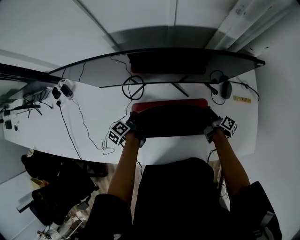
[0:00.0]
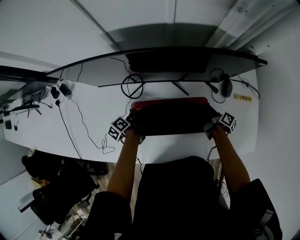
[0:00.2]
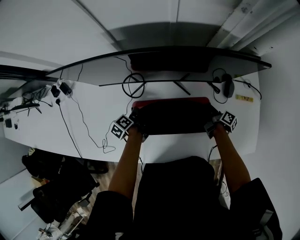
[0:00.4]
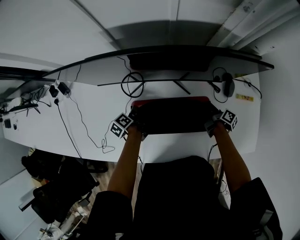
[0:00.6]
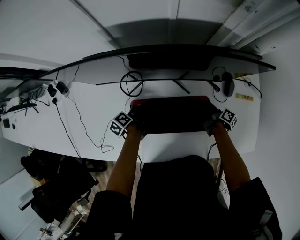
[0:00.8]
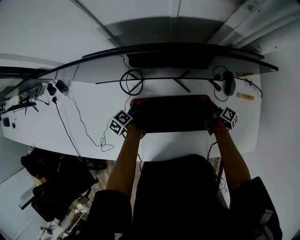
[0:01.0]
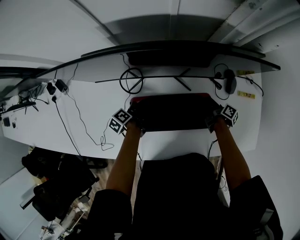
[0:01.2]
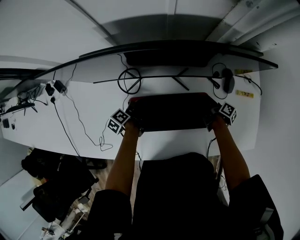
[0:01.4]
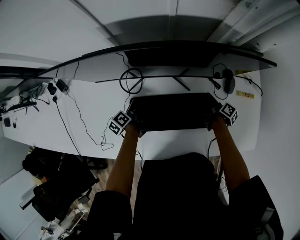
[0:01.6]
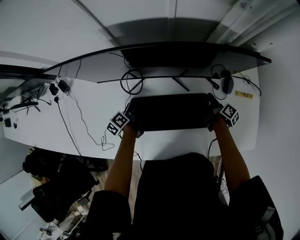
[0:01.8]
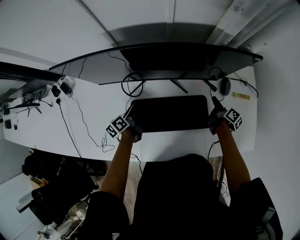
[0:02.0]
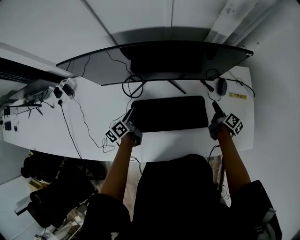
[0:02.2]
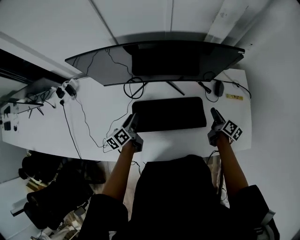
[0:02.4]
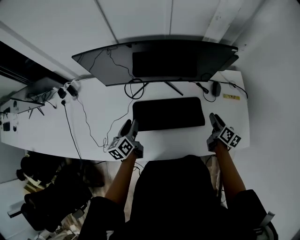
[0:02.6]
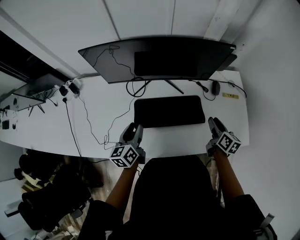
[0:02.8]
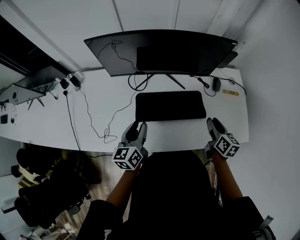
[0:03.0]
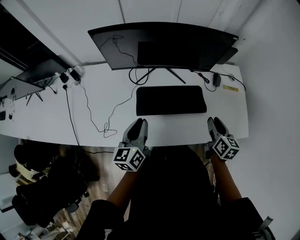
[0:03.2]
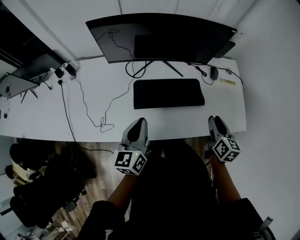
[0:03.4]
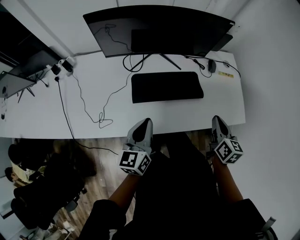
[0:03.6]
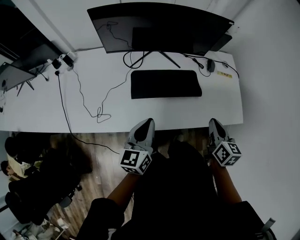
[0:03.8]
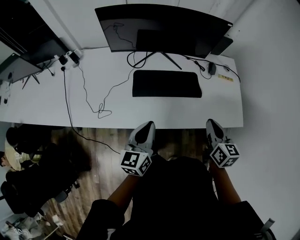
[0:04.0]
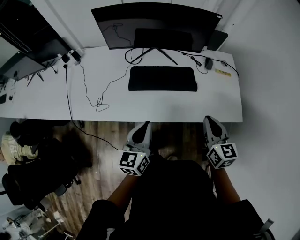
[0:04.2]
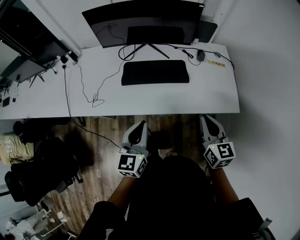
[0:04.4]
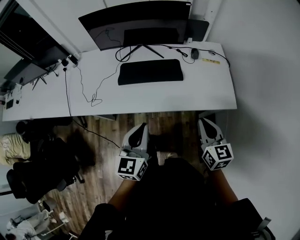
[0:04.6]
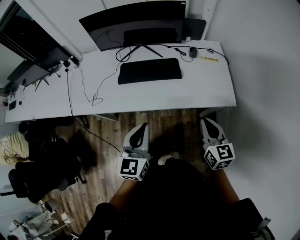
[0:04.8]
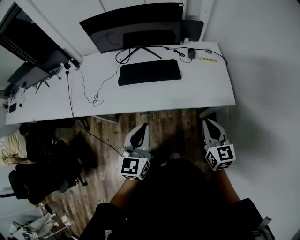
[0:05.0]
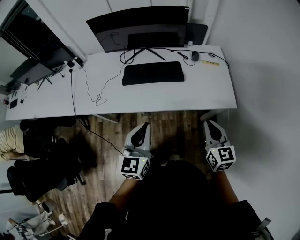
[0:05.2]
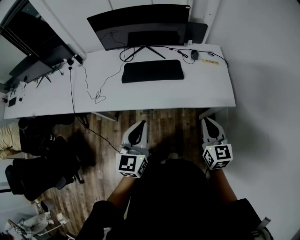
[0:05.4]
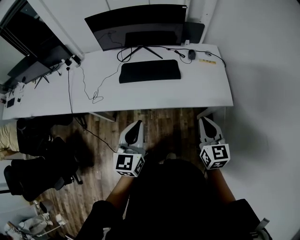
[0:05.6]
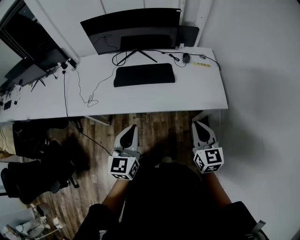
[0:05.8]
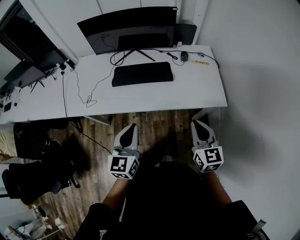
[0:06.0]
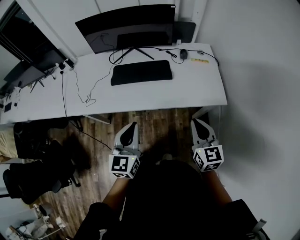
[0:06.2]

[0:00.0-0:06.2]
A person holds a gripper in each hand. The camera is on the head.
0:00.0 to 0:01.6: The grippers stay close to where they were, moving slightly.
0:01.6 to 0:03.2: The left gripper goes some 35 cm upward and backward, and rotates around the line of its fingers by roughly 40 degrees, clockwise from behind; the right gripper moves backward and upward, roughly 35 cm, and rotates around the line of its fingers by approximately 50 degrees, counterclockwise from behind.
0:03.2 to 0:04.6: The left gripper is displaced backward and to the right by about 30 cm, and rotates some 20 degrees, while the right gripper shifts roughly 25 cm backward, rotates some 20 degrees, and closes up.
0:04.6 to 0:06.2: The right gripper shifts about 5 cm backward.

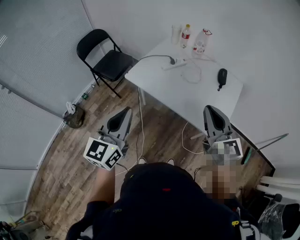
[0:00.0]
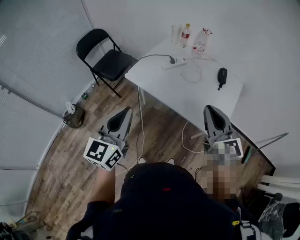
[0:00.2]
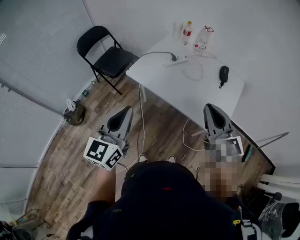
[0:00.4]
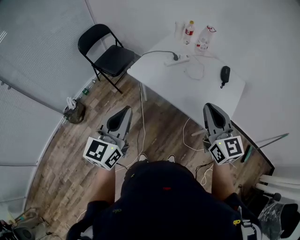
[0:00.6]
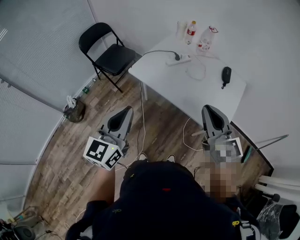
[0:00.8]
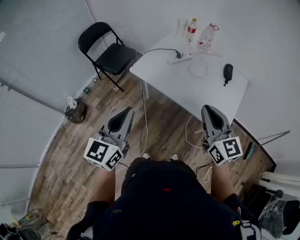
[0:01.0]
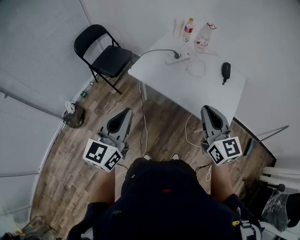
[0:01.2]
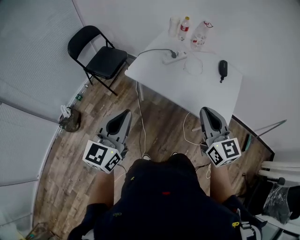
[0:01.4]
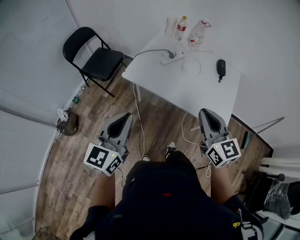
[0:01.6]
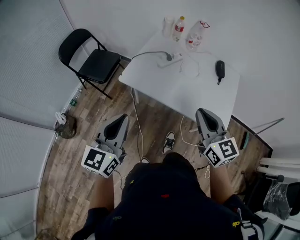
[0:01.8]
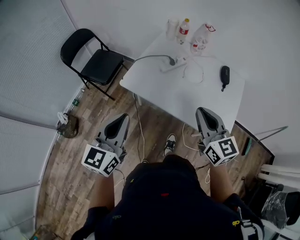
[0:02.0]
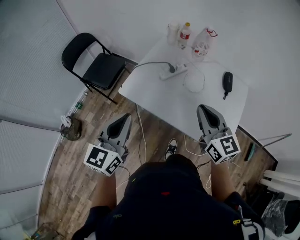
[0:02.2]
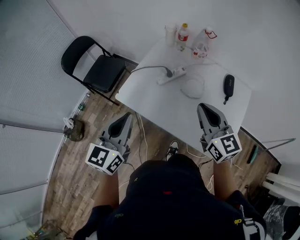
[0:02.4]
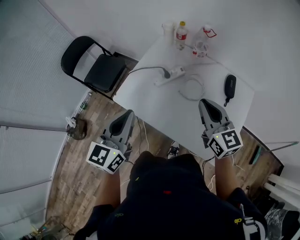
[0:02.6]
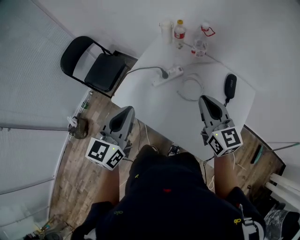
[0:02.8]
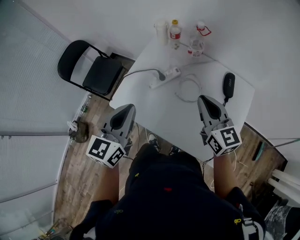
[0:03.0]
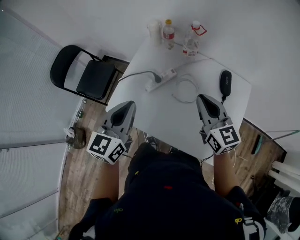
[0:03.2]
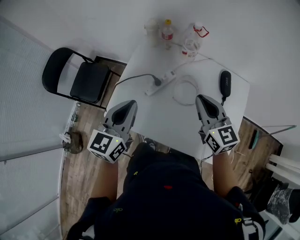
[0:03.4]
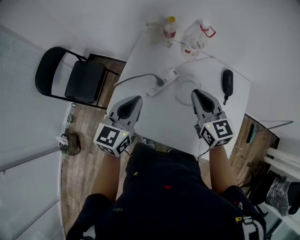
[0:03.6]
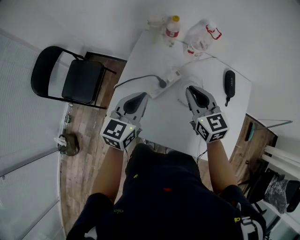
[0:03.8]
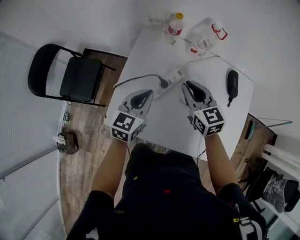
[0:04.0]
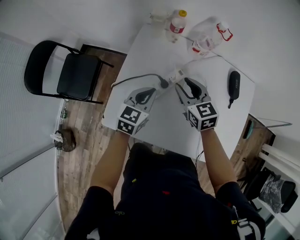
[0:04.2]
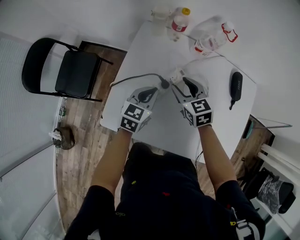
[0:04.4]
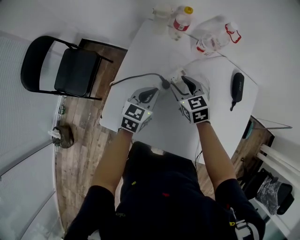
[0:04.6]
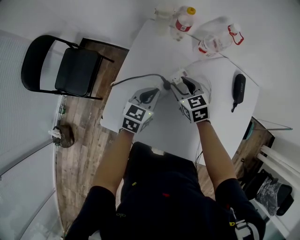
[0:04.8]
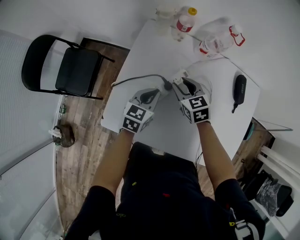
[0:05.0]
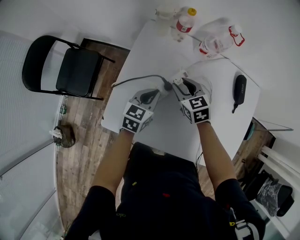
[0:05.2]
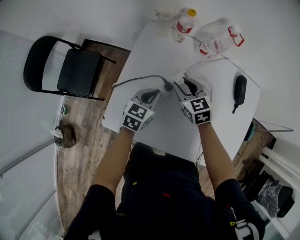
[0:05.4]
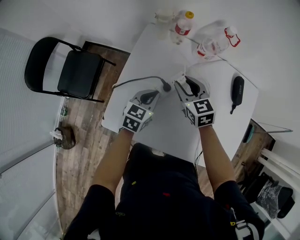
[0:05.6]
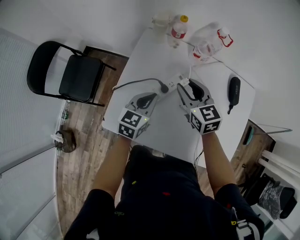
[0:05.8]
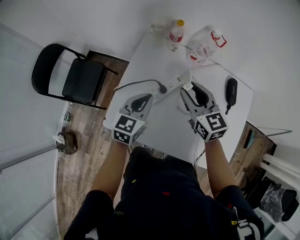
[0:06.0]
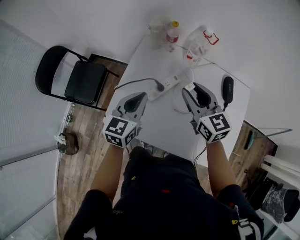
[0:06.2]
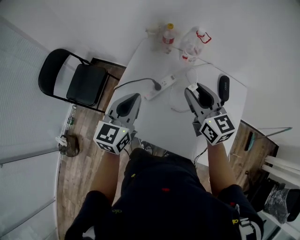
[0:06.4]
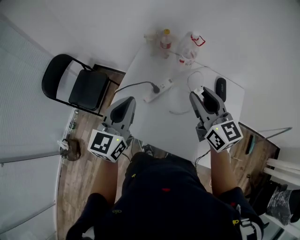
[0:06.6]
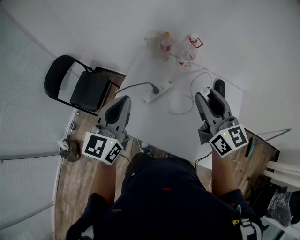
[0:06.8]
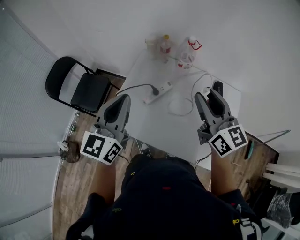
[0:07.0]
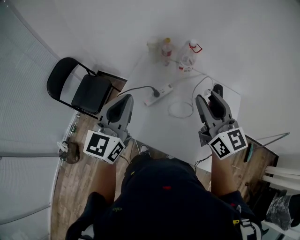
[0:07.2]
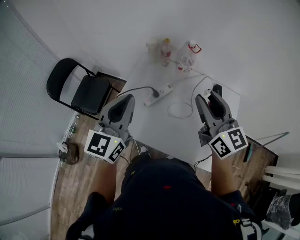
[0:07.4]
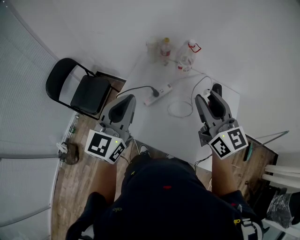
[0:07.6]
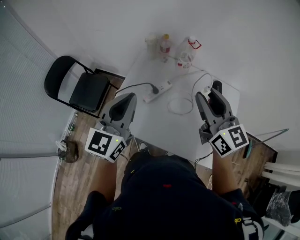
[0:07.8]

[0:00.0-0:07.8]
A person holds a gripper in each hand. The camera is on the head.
0:00.0 to 0:01.6: Both grippers travel together to the left, some 10 cm.
0:01.6 to 0:03.2: The grippers both shift forward and to the right by some 35 cm.
0:03.2 to 0:04.6: The right gripper is displaced downward, forward and to the left by roughly 30 cm, turns by about 30 degrees, and opens its fingers; the left gripper travels downward and forward by roughly 30 cm, and rotates approximately 20 degrees.
0:04.6 to 0:06.2: Both grippers travel together upward, roughly 20 cm. The right gripper rotates roughly 20 degrees.
0:06.2 to 0:07.8: Both grippers travel together upward and backward, some 20 cm. The left gripper changes its angle by approximately 20 degrees.

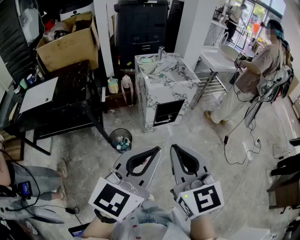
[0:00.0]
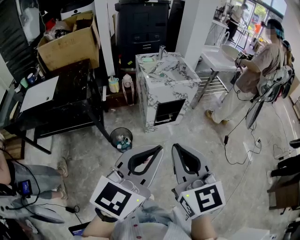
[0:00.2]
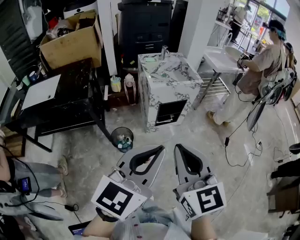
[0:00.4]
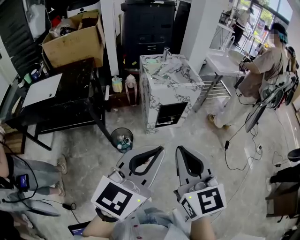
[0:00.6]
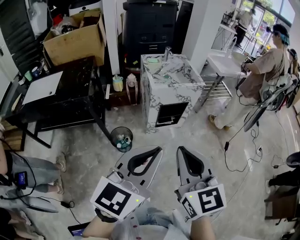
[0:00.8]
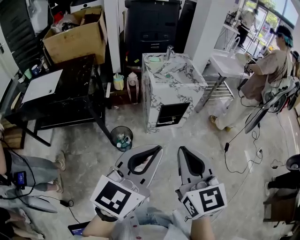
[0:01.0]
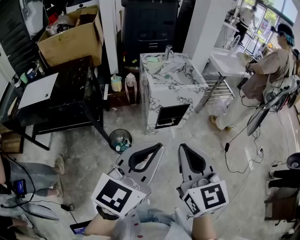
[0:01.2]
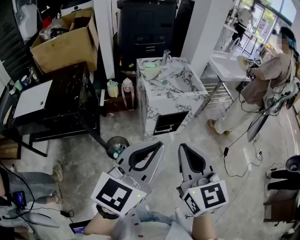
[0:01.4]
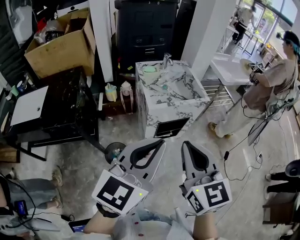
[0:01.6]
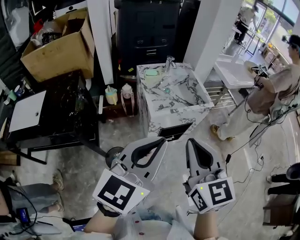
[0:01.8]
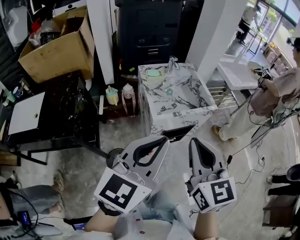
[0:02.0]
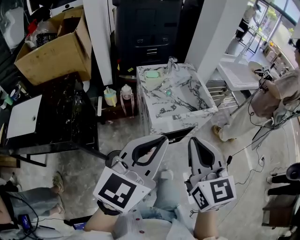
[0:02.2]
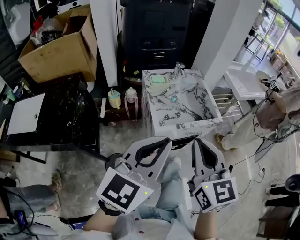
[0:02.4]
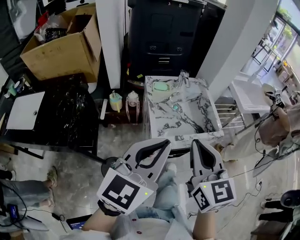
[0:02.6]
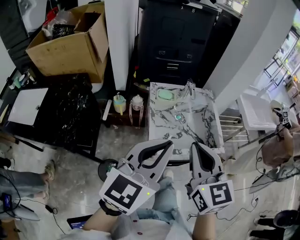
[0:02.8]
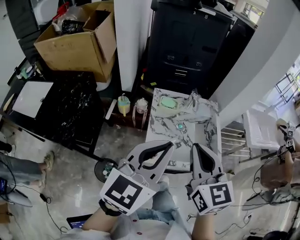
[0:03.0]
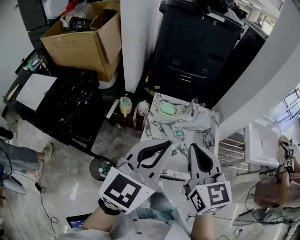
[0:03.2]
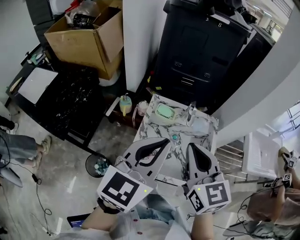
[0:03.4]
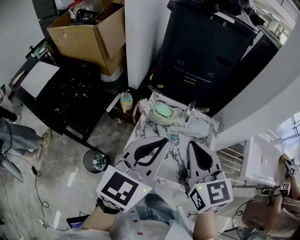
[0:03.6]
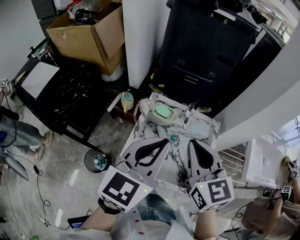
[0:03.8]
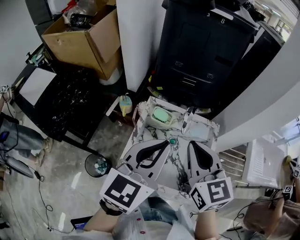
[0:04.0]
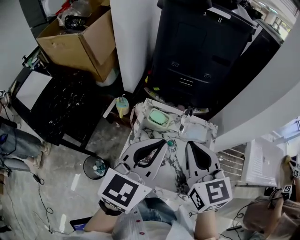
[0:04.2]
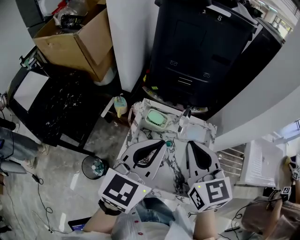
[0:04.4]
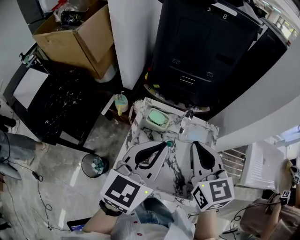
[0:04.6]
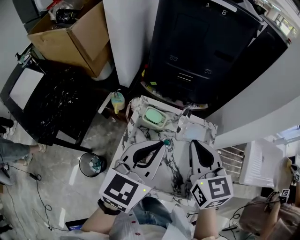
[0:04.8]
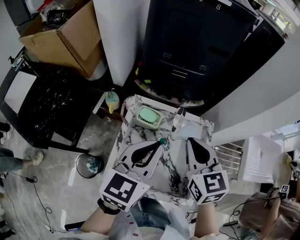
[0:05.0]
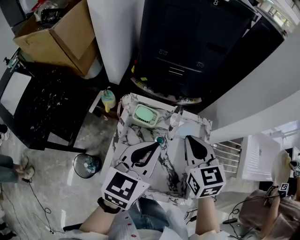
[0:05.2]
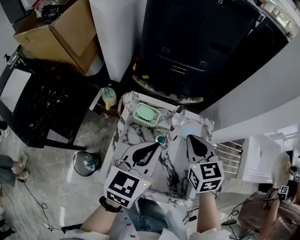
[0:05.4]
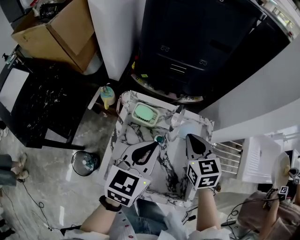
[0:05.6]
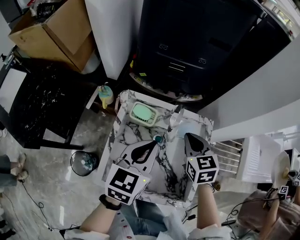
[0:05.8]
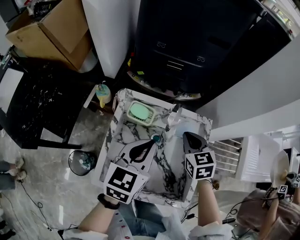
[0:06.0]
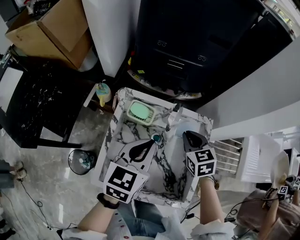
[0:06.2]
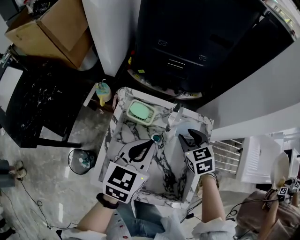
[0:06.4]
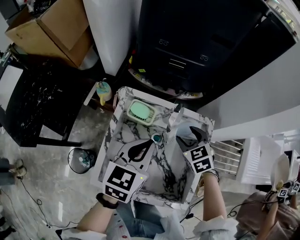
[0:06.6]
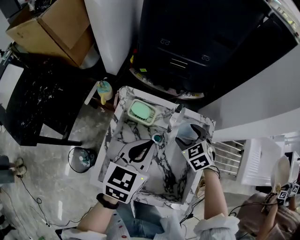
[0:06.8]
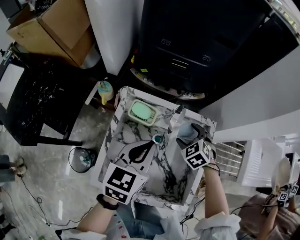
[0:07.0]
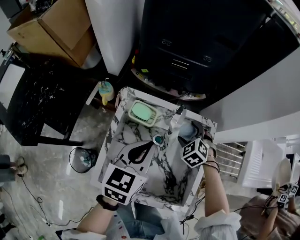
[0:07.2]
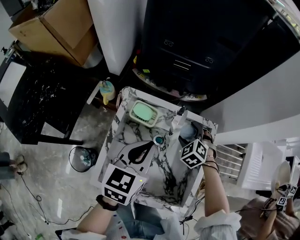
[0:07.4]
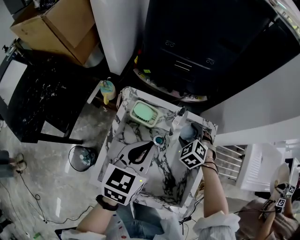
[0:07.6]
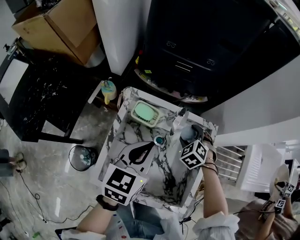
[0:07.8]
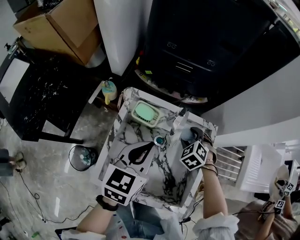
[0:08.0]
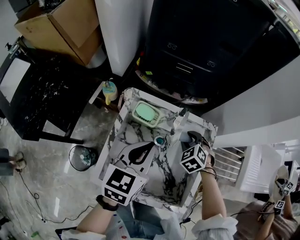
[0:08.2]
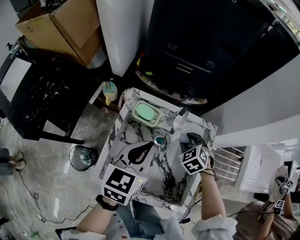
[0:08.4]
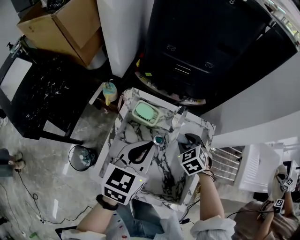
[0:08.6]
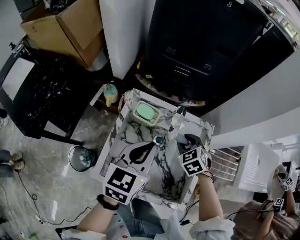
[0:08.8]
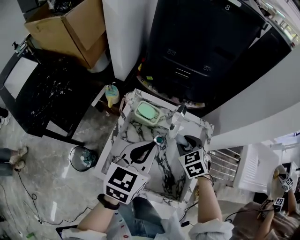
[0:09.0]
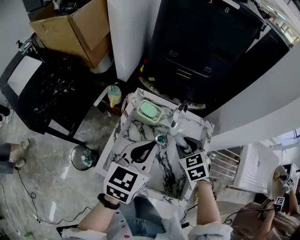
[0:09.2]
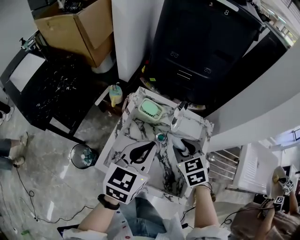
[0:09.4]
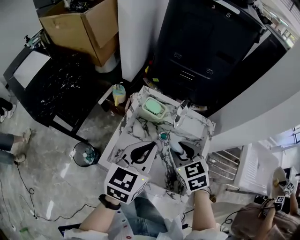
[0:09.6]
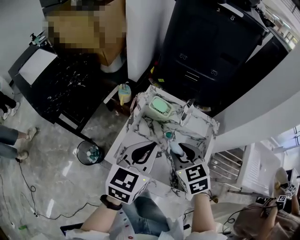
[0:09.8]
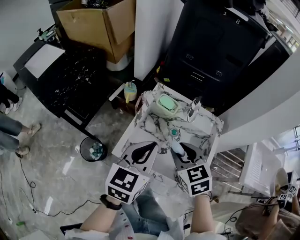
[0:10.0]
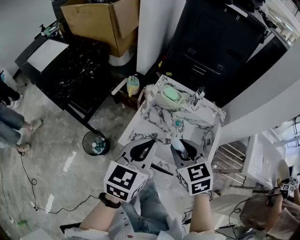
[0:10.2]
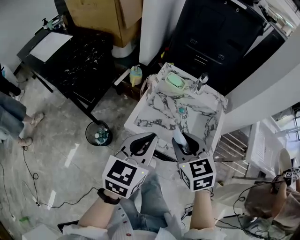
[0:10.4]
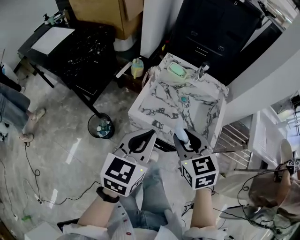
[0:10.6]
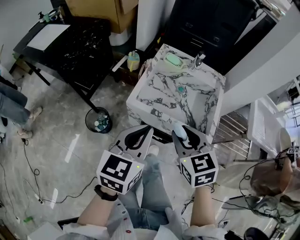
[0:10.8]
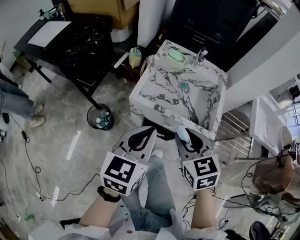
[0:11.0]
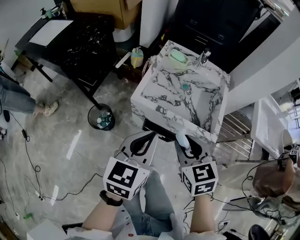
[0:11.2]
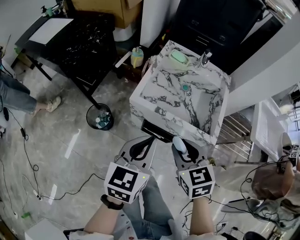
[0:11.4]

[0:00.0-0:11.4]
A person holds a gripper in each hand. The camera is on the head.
0:00.0 to 0:01.4: The two grippers go approximately 15 cm forward.
0:01.4 to 0:02.8: The grippers both shift forward by roughly 35 cm.
0:02.8 to 0:04.2: Both grippers travel together forward and to the right, roughly 25 cm. The right gripper changes its angle by about 20 degrees, while the left gripper swivels approximately 20 degrees.
0:04.2 to 0:05.6: The left gripper heads downward and forward, covering roughly 15 cm. The right gripper shifts about 20 cm downward, forward and to the right.
0:05.6 to 0:07.2: The right gripper goes approximately 15 cm downward, swivels roughly 50 degrees, and opens.
0:07.2 to 0:08.6: The right gripper closes its fingers.
0:08.6 to 0:10.0: The right gripper heads backward, upward and to the left, covering about 25 cm, and swivels approximately 30 degrees. The left gripper heads backward and to the left, covering about 15 cm.
0:10.0 to 0:11.4: Both grippers move backward, some 20 cm.
